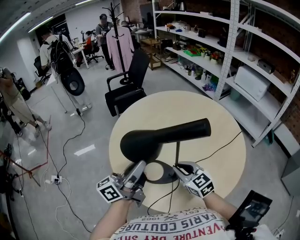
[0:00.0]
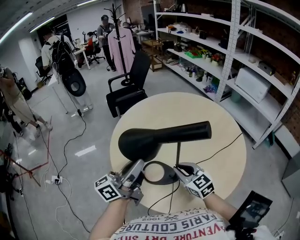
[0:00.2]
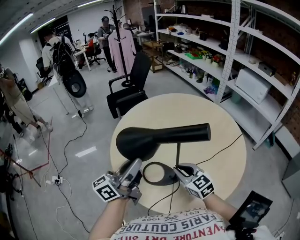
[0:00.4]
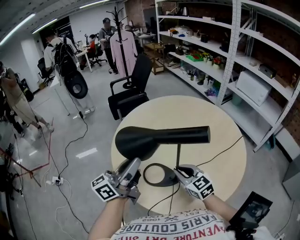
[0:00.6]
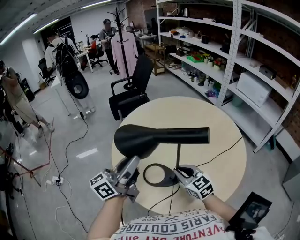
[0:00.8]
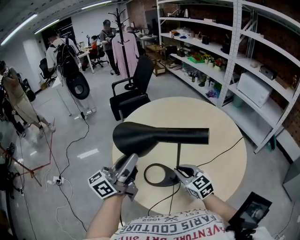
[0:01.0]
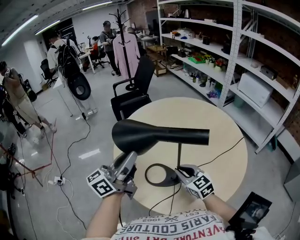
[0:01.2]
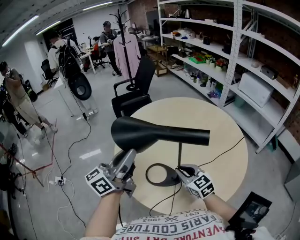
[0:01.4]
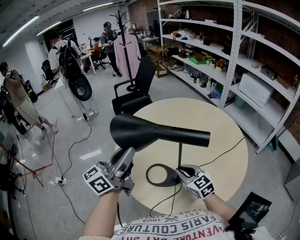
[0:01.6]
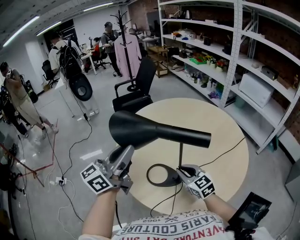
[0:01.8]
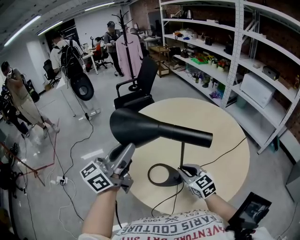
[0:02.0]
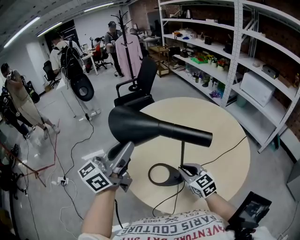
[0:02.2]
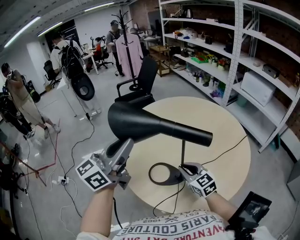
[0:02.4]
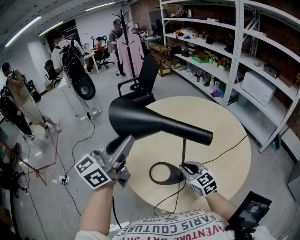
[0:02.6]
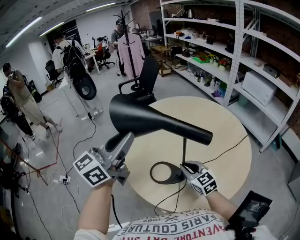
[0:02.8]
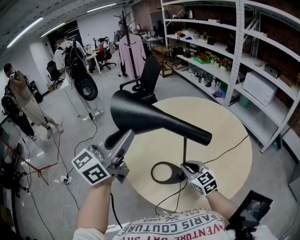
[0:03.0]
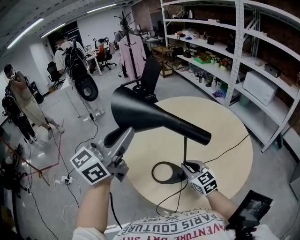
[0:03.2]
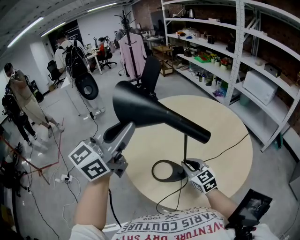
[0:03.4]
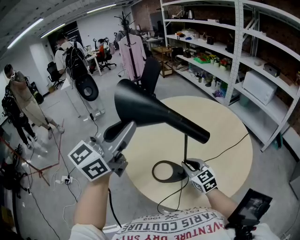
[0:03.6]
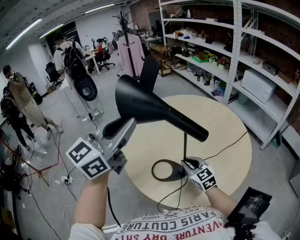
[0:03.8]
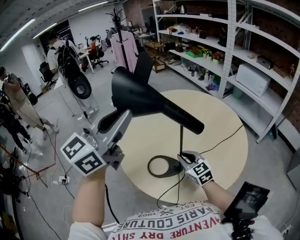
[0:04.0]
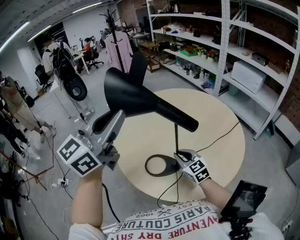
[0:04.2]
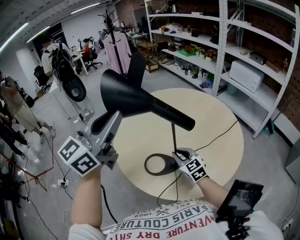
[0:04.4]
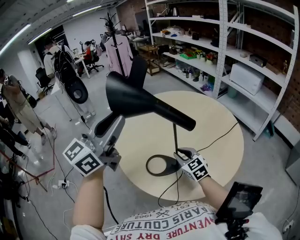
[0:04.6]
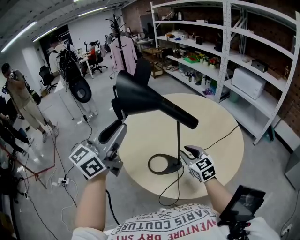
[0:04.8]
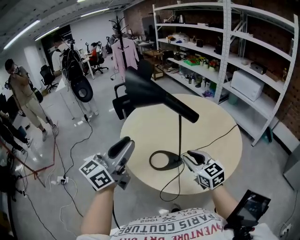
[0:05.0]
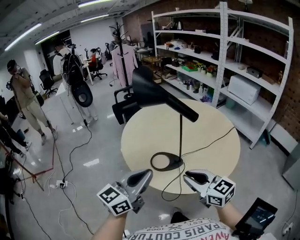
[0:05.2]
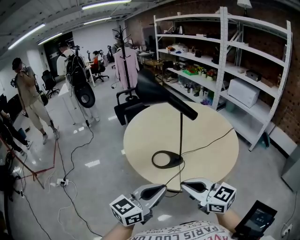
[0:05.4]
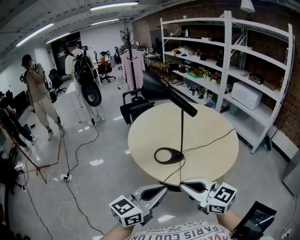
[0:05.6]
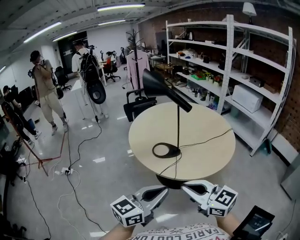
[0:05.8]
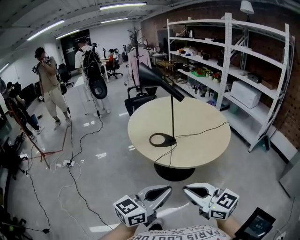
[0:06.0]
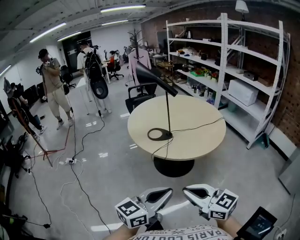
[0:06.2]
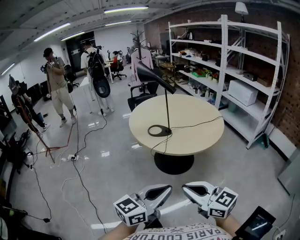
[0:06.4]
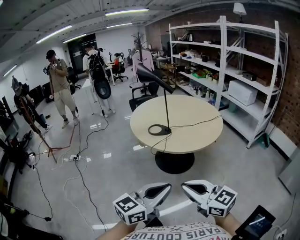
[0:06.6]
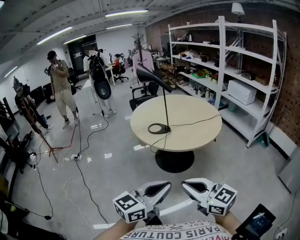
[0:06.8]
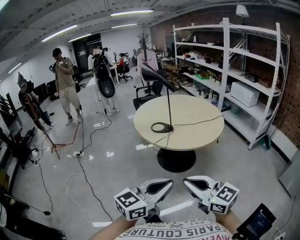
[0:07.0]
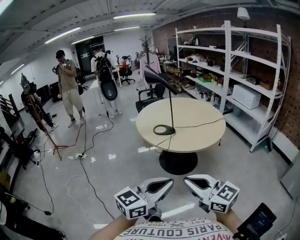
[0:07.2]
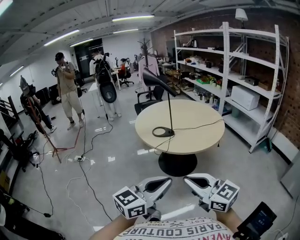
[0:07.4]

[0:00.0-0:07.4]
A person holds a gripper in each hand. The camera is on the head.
0:00.0 to 0:01.4: The left gripper travels upward by approximately 5 cm.
0:01.4 to 0:03.0: The left gripper heads upward, covering about 10 cm, and rotates some 20 degrees.
0:03.0 to 0:04.4: The left gripper is displaced upward by some 5 cm.
0:04.4 to 0:06.0: The two grippers travel together, backward, roughly 50 cm. The left gripper shifts approximately 20 cm downward, and swivels approximately 20 degrees; the right gripper swivels approximately 30 degrees.
0:06.0 to 0:07.4: The two grippers go about 15 cm backward.

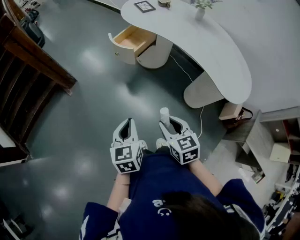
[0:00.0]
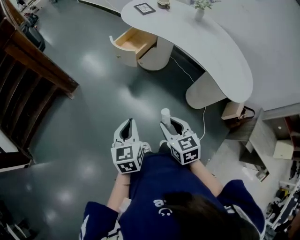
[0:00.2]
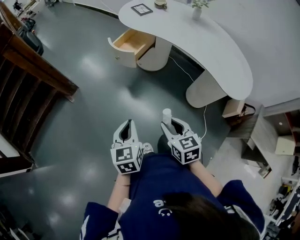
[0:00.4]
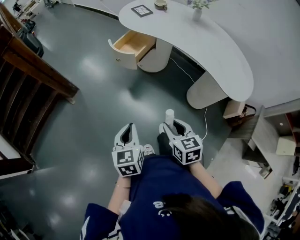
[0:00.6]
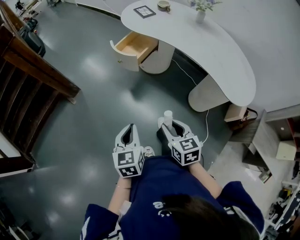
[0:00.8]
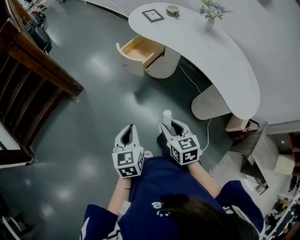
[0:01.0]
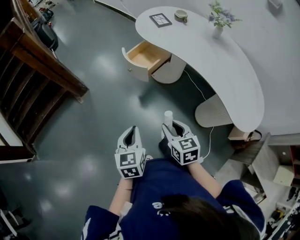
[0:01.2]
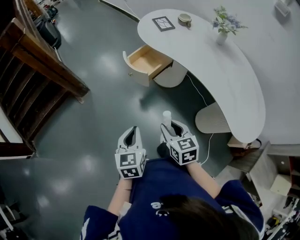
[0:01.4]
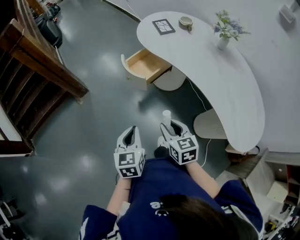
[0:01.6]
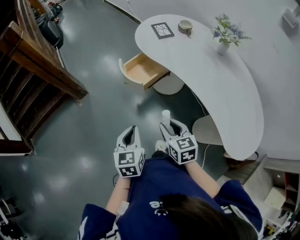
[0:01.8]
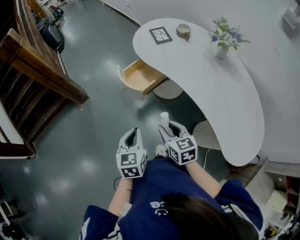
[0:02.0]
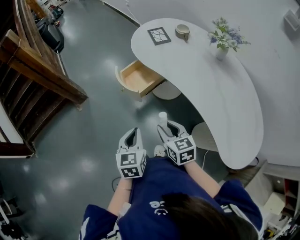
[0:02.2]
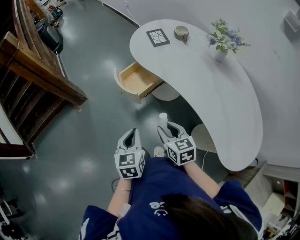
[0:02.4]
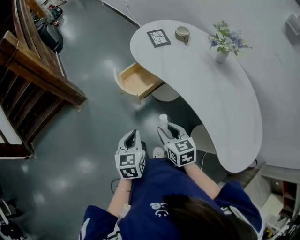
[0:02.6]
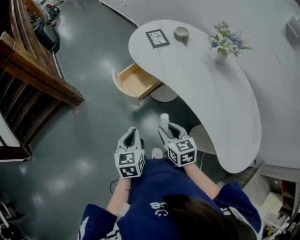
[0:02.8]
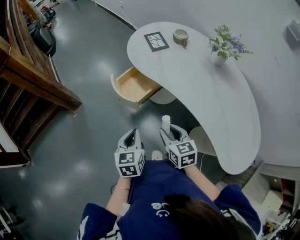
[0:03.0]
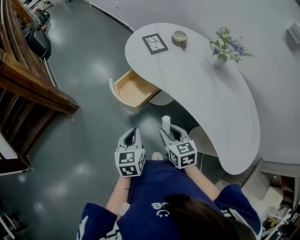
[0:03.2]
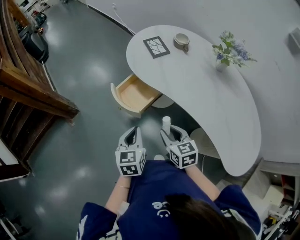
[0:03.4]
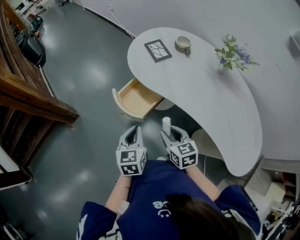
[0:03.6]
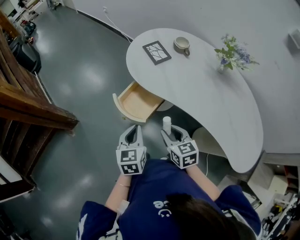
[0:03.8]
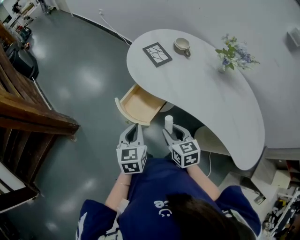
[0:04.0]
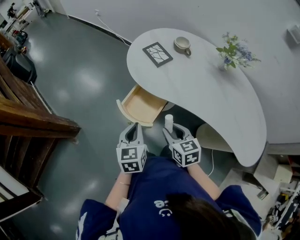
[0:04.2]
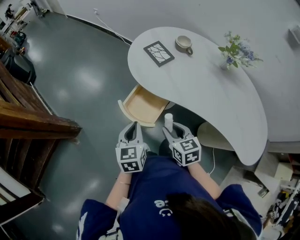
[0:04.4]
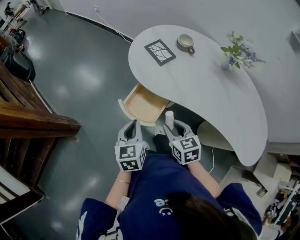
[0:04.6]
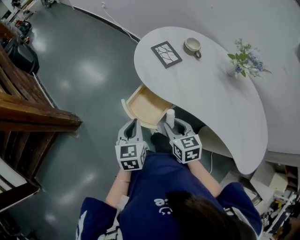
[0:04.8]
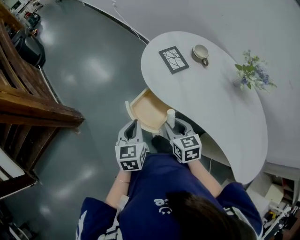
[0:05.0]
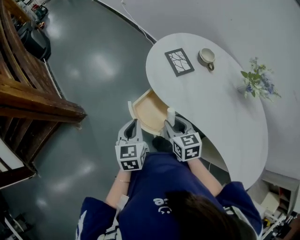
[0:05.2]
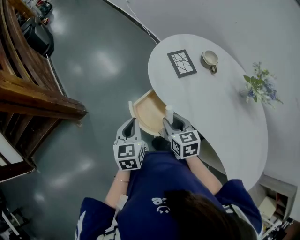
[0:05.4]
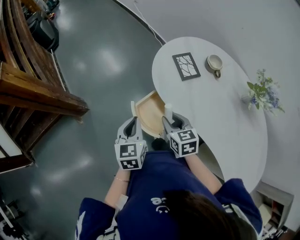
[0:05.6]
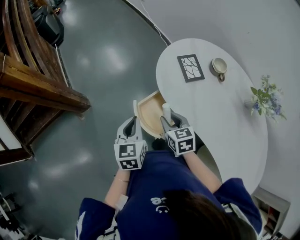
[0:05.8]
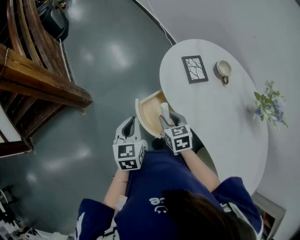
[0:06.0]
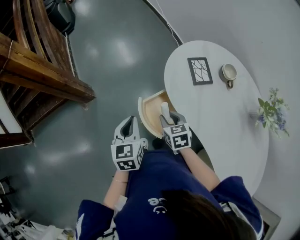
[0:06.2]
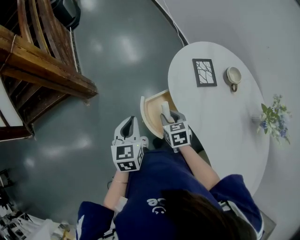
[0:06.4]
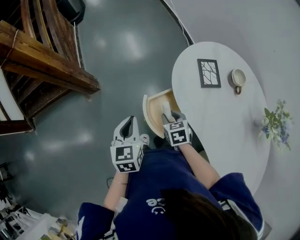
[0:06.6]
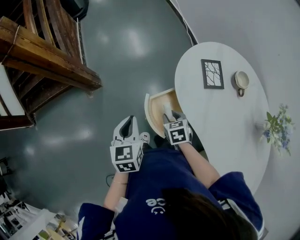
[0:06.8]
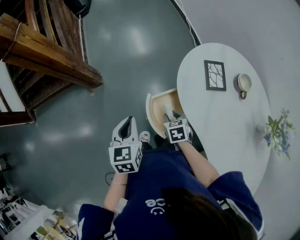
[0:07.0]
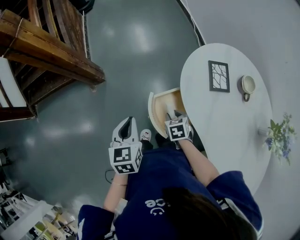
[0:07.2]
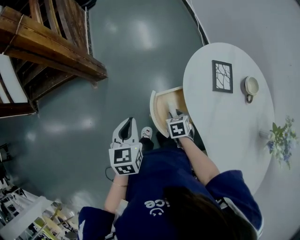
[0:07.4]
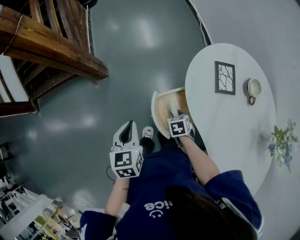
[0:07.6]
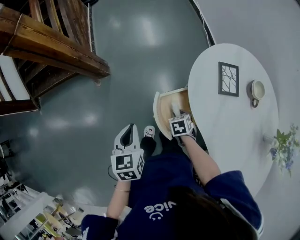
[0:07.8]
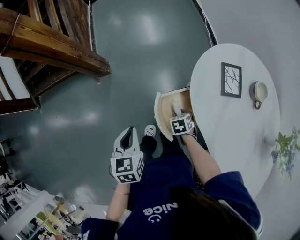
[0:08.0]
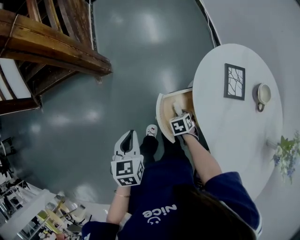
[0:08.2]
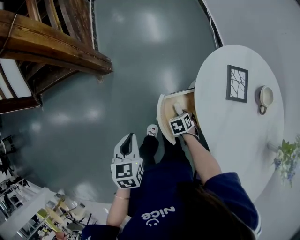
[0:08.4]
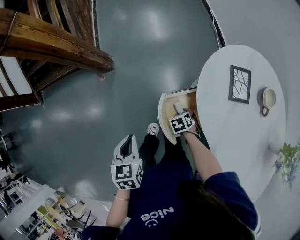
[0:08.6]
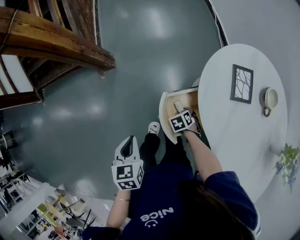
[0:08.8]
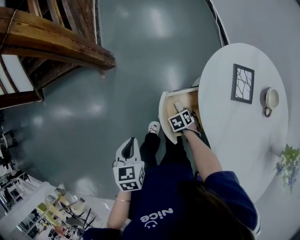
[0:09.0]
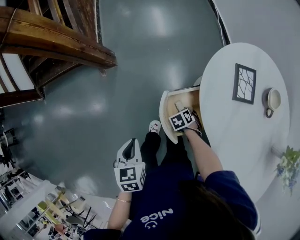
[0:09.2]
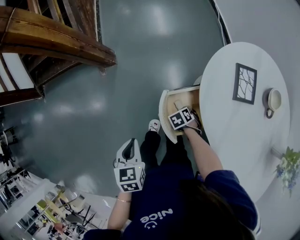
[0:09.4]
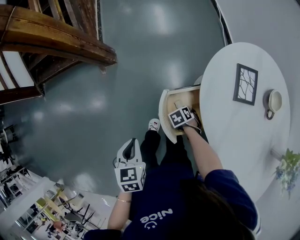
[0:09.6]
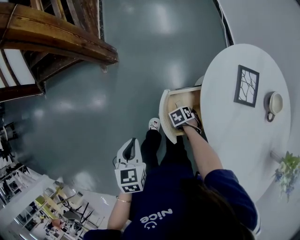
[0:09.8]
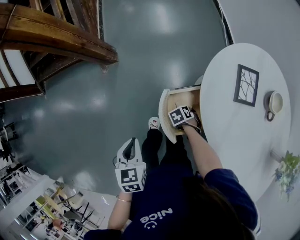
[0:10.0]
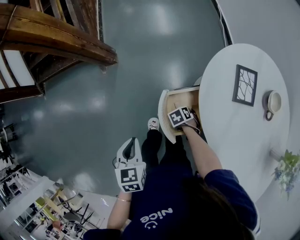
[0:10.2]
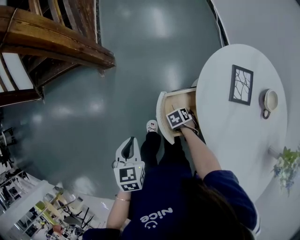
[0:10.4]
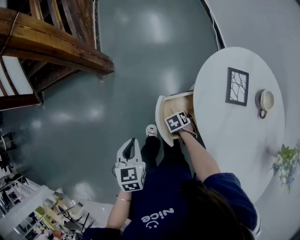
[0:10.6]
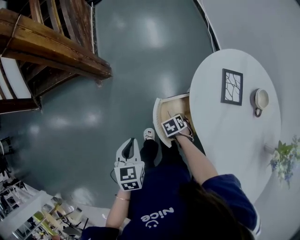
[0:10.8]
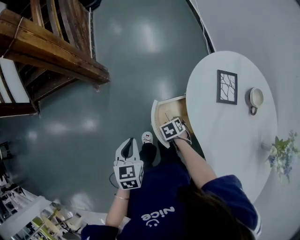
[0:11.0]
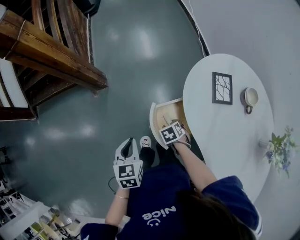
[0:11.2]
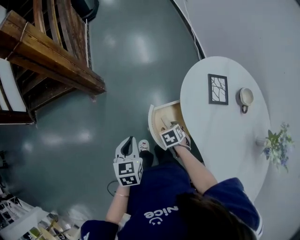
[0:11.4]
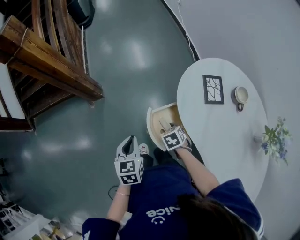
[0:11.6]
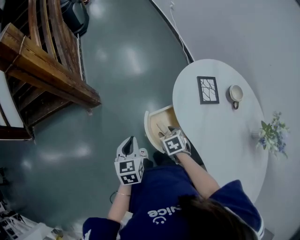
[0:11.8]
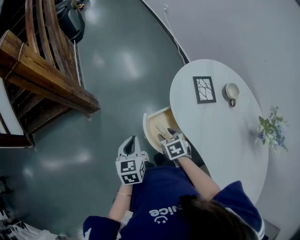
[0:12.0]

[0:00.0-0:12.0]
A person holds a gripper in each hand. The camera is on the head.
0:00.0 to 0:01.6: Both grippers move forward, some 20 cm.
0:01.6 to 0:03.0: Both grippers travel together forward and to the right, approximately 15 cm.
0:03.0 to 0:04.4: The two grippers go approximately 20 cm forward and to the left.
0:04.4 to 0:06.0: The right gripper is displaced forward by some 15 cm, and changes its angle by approximately 20 degrees. The left gripper goes about 5 cm forward, and swivels approximately 20 degrees.
0:06.0 to 0:07.6: The left gripper moves to the left, approximately 5 cm, and turns by approximately 20 degrees, while the right gripper is displaced downward by some 15 cm, and swivels roughly 30 degrees.
0:07.6 to 0:09.0: The right gripper moves downward, some 10 cm, and changes its angle by approximately 20 degrees. Meanwhile the left gripper ends up roughly 10 cm from where it was.
0:09.0 to 0:10.4: There are only small adjustments of the grippers.
0:10.4 to 0:12.0: The right gripper heads upward, covering about 20 cm, and rotates some 30 degrees. The left gripper changes place by approximately 10 cm.

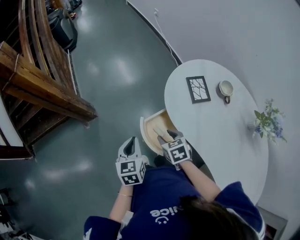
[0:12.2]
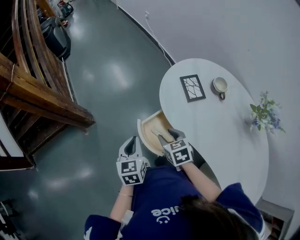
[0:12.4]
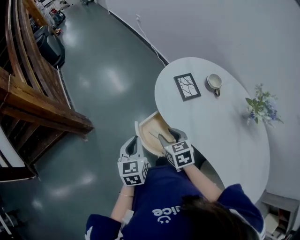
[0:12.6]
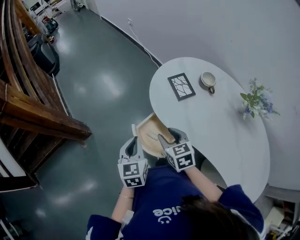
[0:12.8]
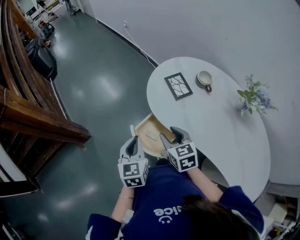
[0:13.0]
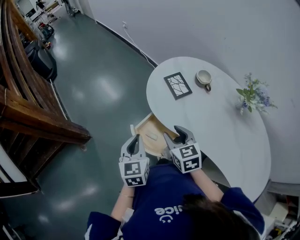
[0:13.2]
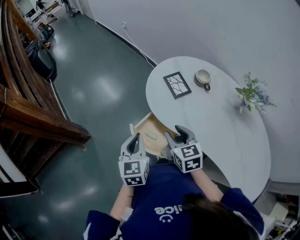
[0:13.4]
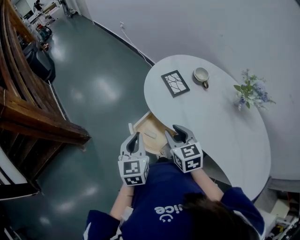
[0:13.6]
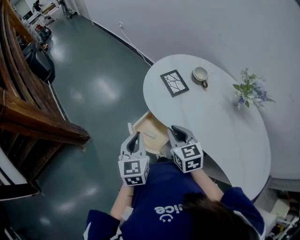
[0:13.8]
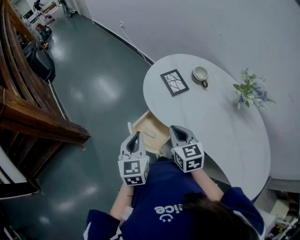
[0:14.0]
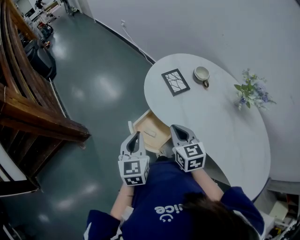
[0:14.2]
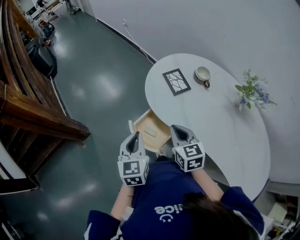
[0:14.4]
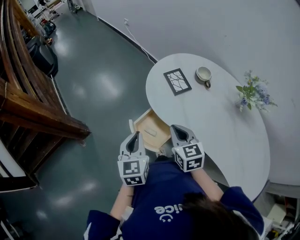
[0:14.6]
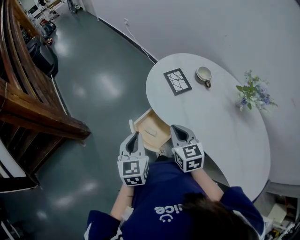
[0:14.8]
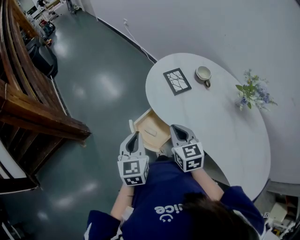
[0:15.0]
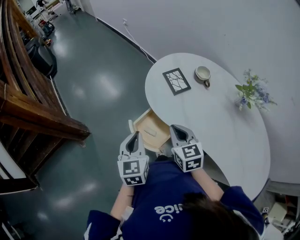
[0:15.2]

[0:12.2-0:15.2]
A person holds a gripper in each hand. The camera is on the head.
0:12.2 to 0:13.8: The left gripper travels to the right and upward by roughly 10 cm, and turns by some 20 degrees. The right gripper heads upward and to the right, covering some 15 cm, rotates about 30 degrees, and closes its fingers.
0:13.8 to 0:15.2: Both grippers stay about where they are.

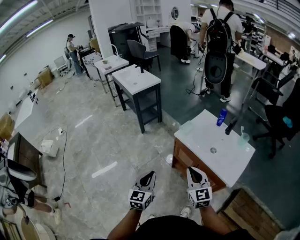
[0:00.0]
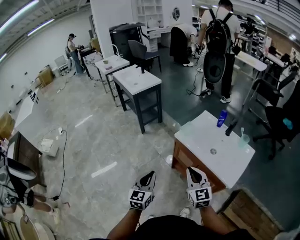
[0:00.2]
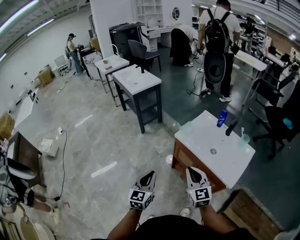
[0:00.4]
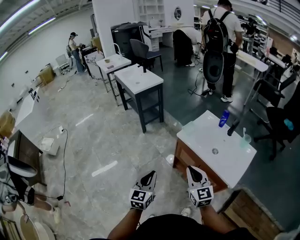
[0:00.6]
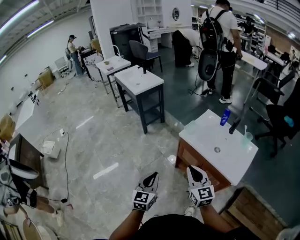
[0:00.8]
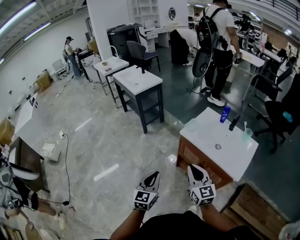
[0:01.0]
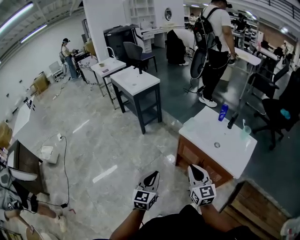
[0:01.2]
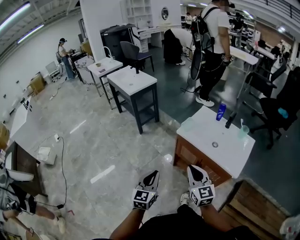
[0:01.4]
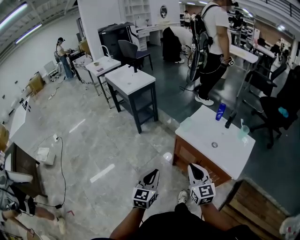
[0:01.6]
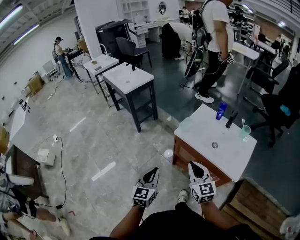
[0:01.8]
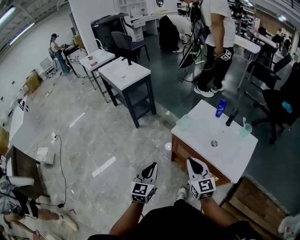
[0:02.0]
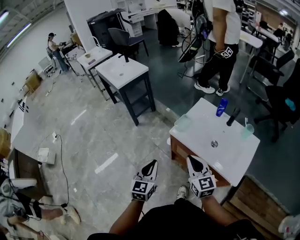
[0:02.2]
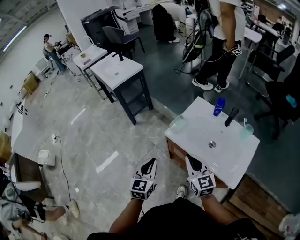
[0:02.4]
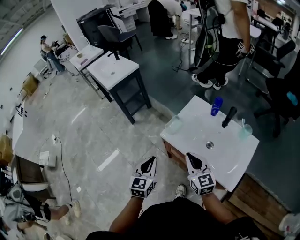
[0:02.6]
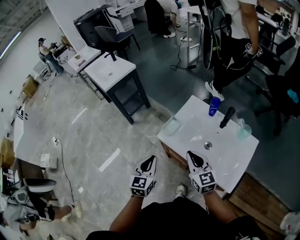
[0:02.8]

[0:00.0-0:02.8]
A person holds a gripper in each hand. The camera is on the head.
0:00.0 to 0:01.4: The right gripper moves roughly 5 cm.
0:01.4 to 0:02.8: The two grippers go some 25 cm forward and to the right.
